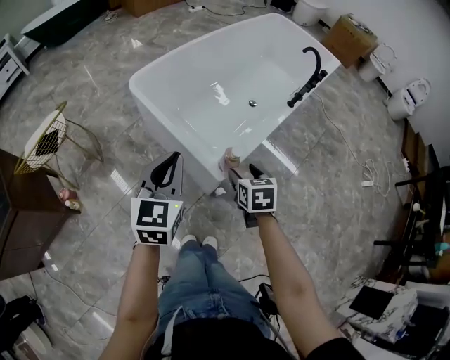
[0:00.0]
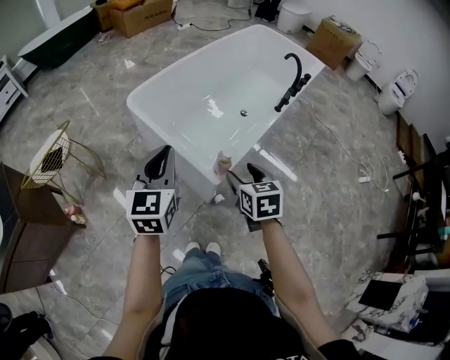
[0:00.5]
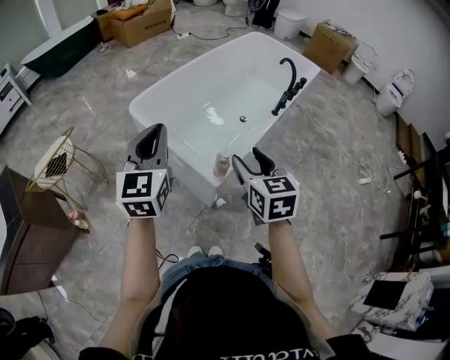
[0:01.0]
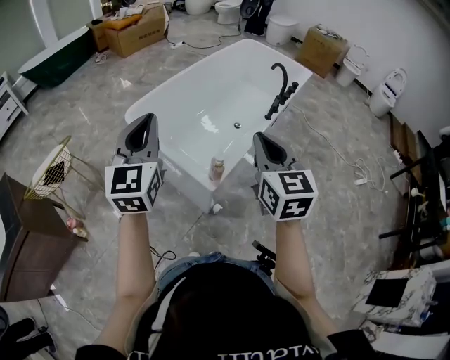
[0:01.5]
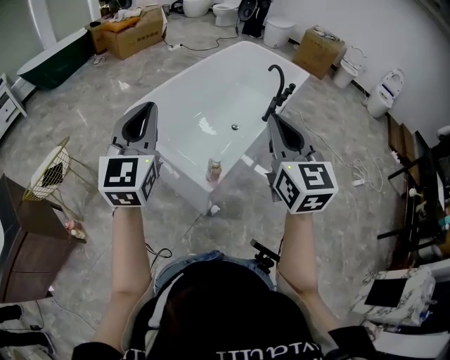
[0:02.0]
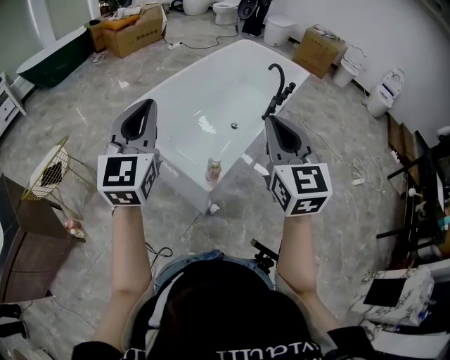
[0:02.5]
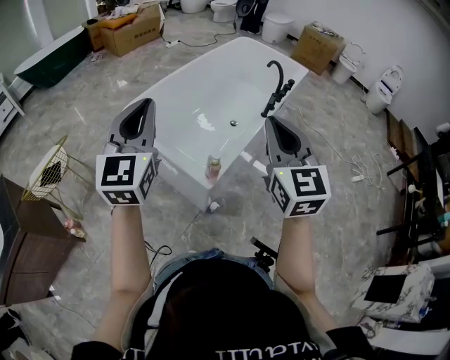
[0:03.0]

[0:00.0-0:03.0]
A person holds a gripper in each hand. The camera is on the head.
0:00.0 to 0:01.5: The left gripper goes roughly 20 cm upward. The right gripper moves upward, approximately 30 cm, tips its fingers upward by about 40 degrees, and closes its fingers.
0:01.5 to 0:03.0: The right gripper travels upward by about 5 cm.

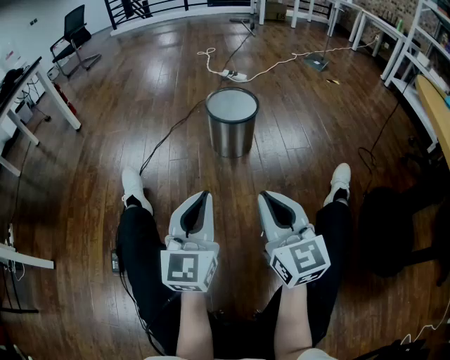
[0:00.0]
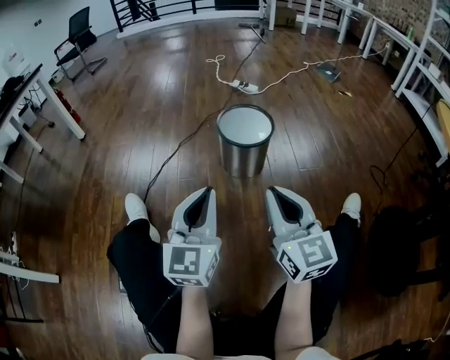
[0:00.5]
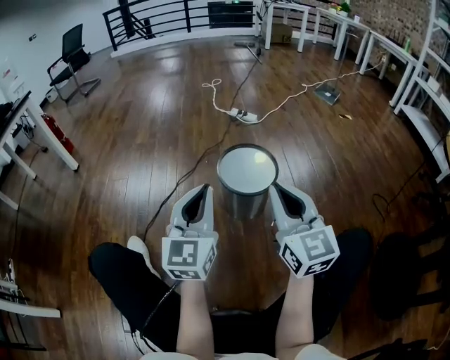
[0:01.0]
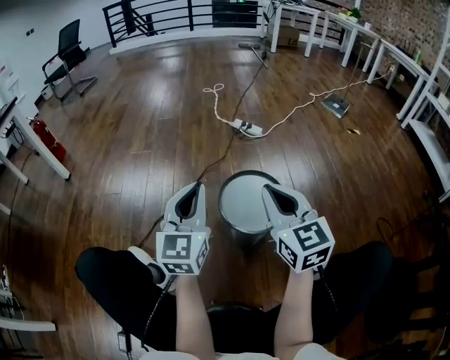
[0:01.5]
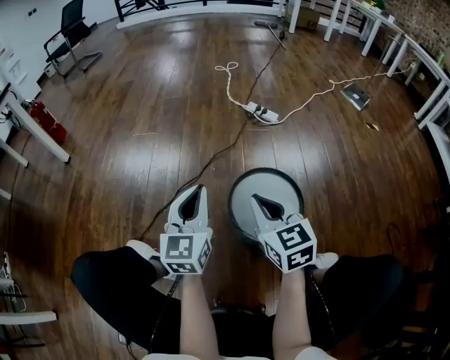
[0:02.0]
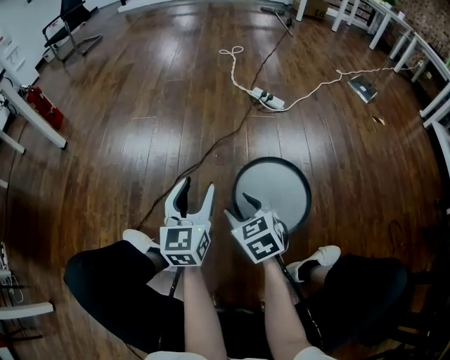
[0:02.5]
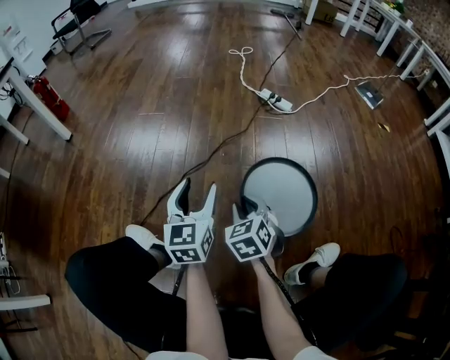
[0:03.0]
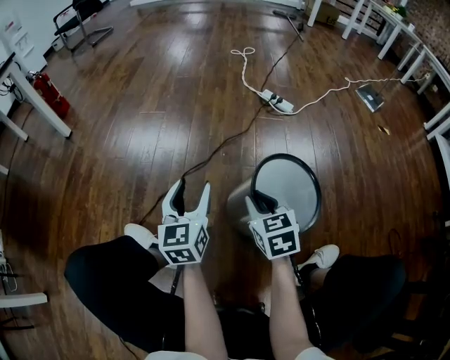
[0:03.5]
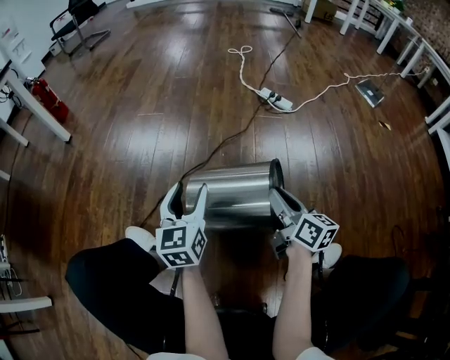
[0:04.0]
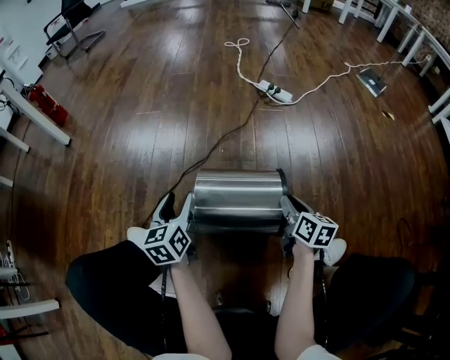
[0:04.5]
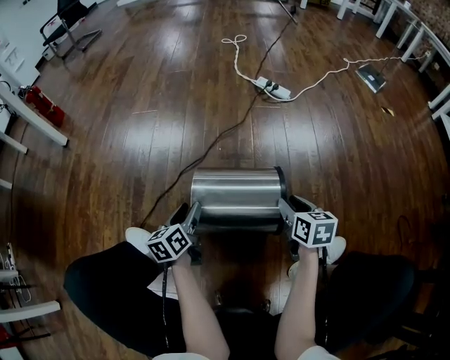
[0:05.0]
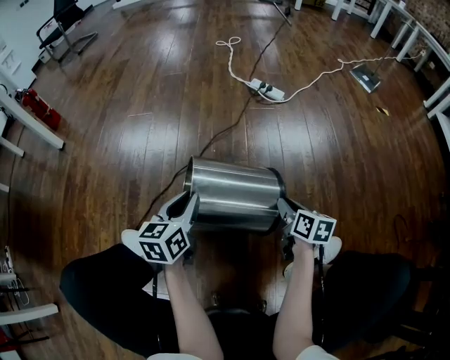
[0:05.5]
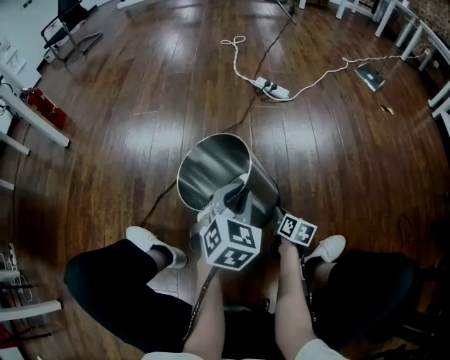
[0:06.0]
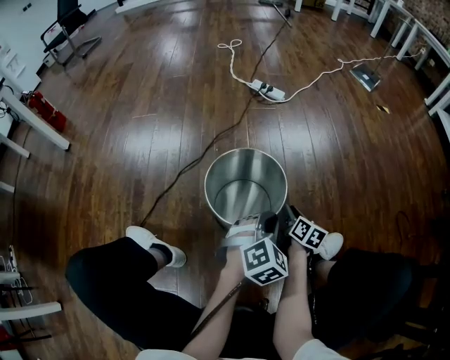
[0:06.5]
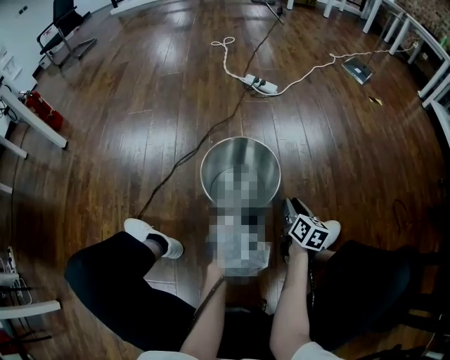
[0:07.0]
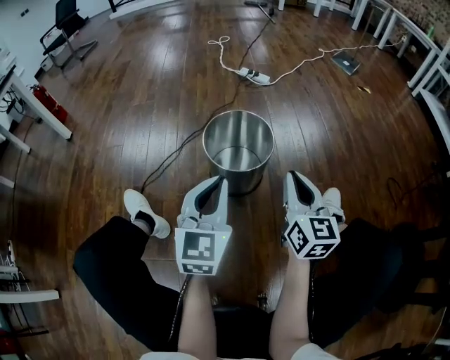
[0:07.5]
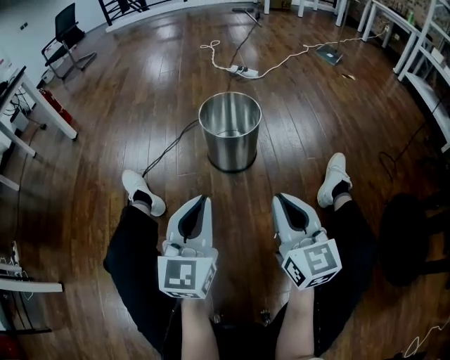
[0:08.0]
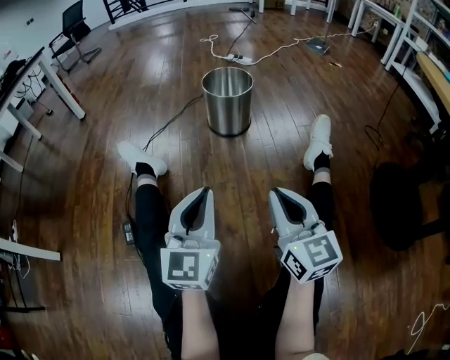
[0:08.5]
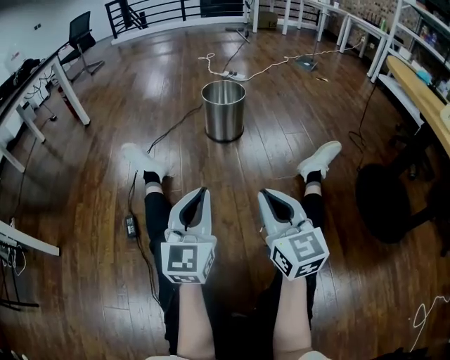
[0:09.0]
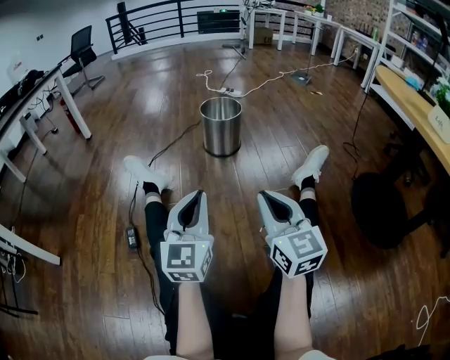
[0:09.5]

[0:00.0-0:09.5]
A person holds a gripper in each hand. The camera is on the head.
0:00.0 to 0:02.0: The pair of grippers is taken forward, about 50 cm. The right gripper changes its angle by some 20 degrees.
0:02.0 to 0:04.0: The left gripper moves downward and to the left, about 10 cm, and opens; the right gripper travels downward by some 10 cm, rotates approximately 40 degrees, and opens, then closes once more.
0:04.0 to 0:05.5: The right gripper moves downward and to the right, some 15 cm, and swivels roughly 30 degrees. Meanwhile the left gripper goes downward and returns, roughly 15 cm each way, changes its angle by roughly 20 degrees, and closes its fingers.
0:05.5 to 0:07.5: The right gripper moves upward and backward, roughly 25 cm, and tilts its fingers approximately 30 degrees upward. The left gripper shifts approximately 25 cm backward, upward and to the right, and turns by approximately 30 degrees.
0:07.5 to 0:09.5: The two grippers travel together, backward, approximately 50 cm.

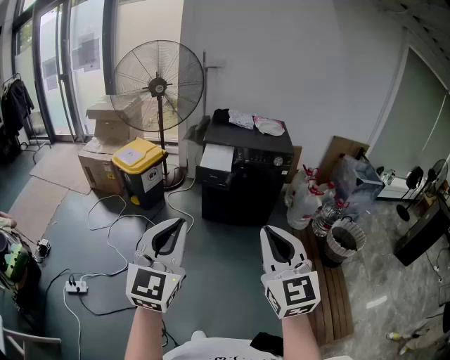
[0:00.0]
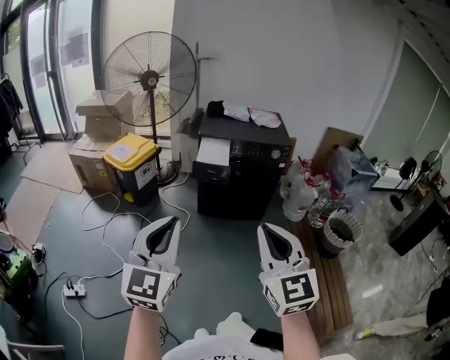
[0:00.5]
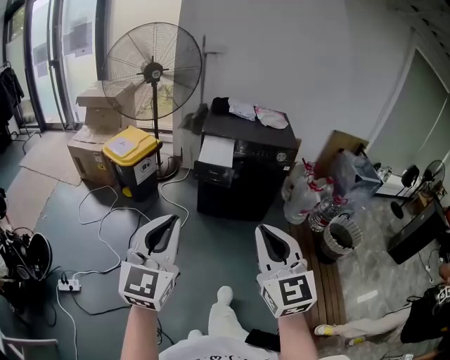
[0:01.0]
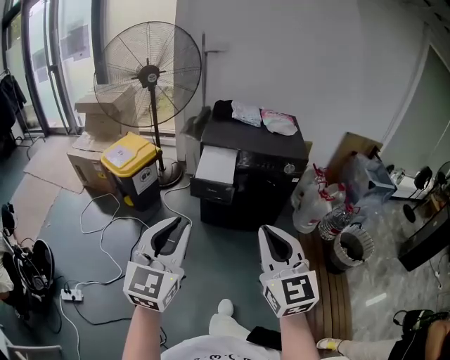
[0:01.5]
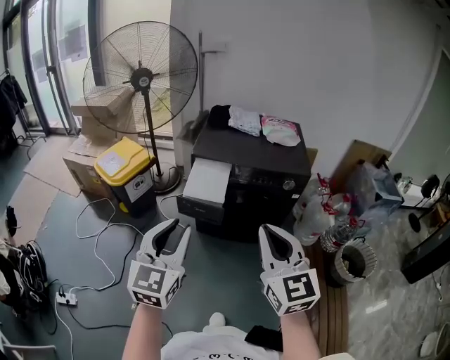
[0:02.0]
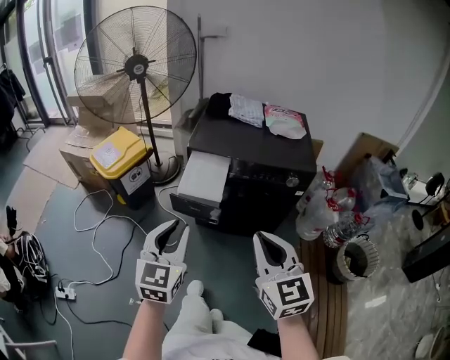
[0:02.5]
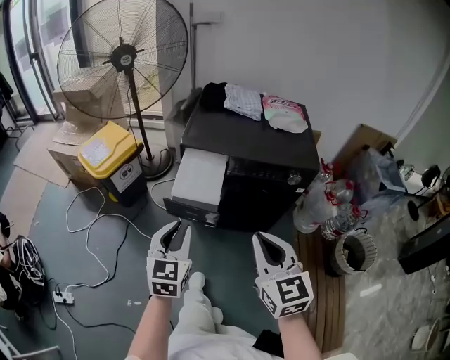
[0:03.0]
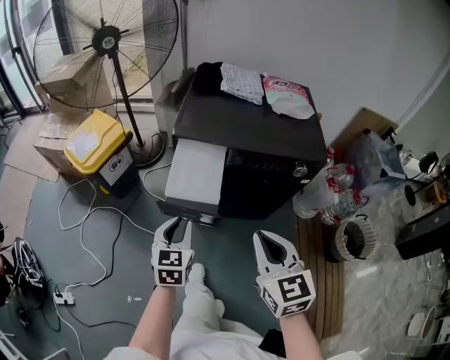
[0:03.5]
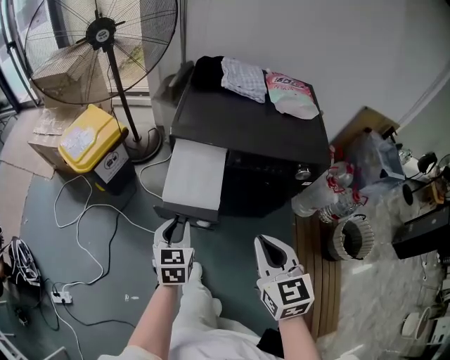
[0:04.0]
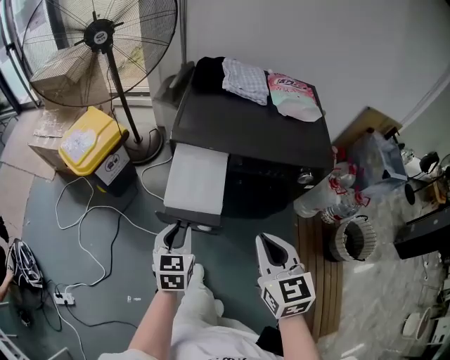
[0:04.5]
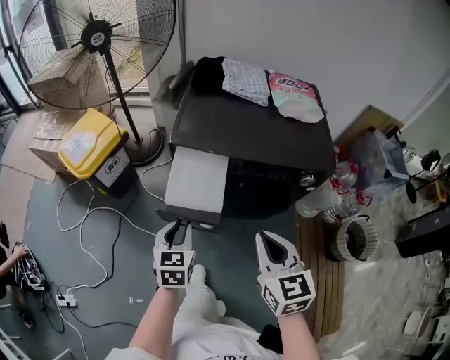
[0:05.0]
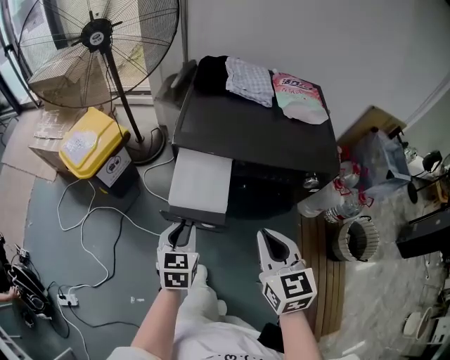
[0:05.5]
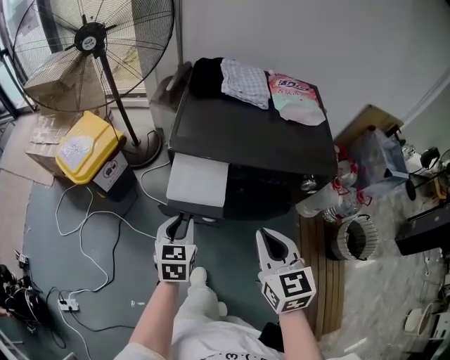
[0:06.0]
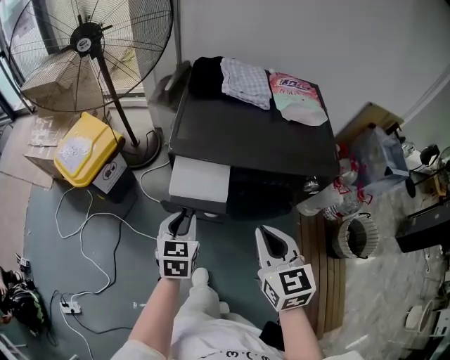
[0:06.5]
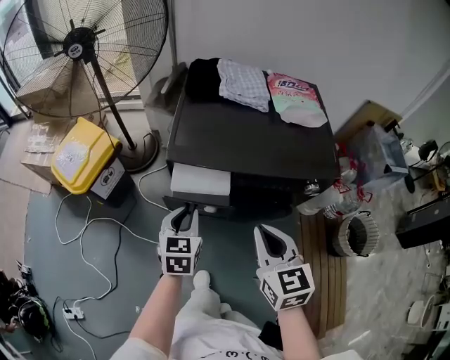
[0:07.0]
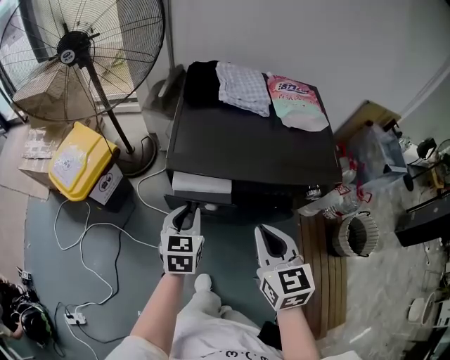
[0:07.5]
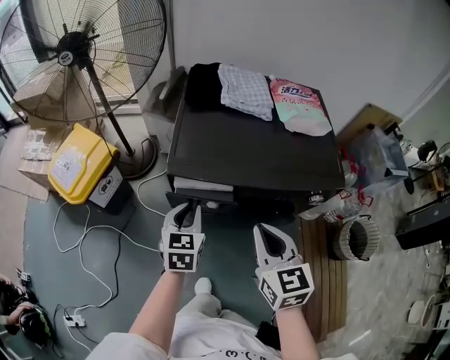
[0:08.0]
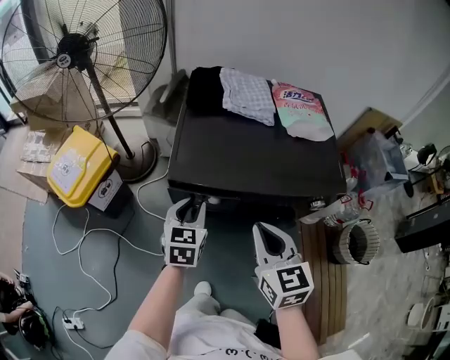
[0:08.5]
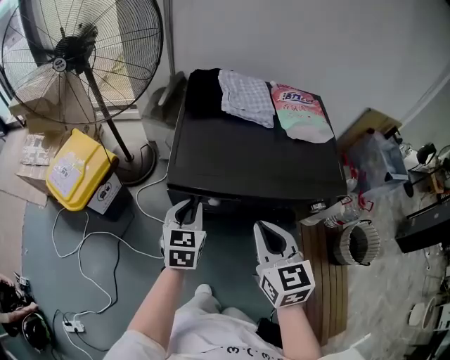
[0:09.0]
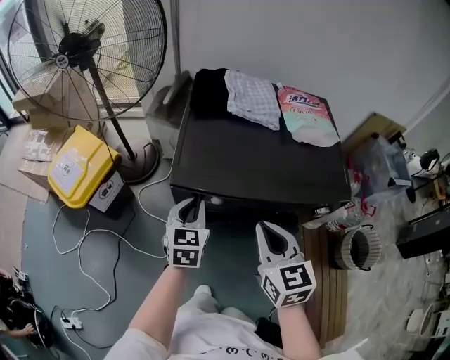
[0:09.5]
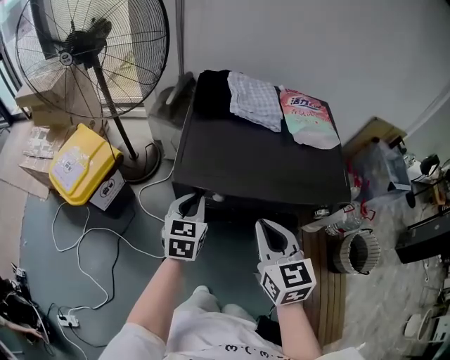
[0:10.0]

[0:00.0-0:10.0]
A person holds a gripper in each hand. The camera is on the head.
0:00.0 to 0:02.0: Both grippers move forward, approximately 35 cm.
0:02.0 to 0:04.0: Both grippers travel together downward and forward, approximately 30 cm. The right gripper rotates approximately 20 degrees. Meanwhile the left gripper changes its angle by roughly 30 degrees.
0:04.0 to 0:06.0: The two grippers go about 5 cm forward.
0:06.0 to 0:08.0: Both grippers travel together forward, roughly 10 cm.
0:08.0 to 0:10.0: The left gripper shifts some 5 cm forward.

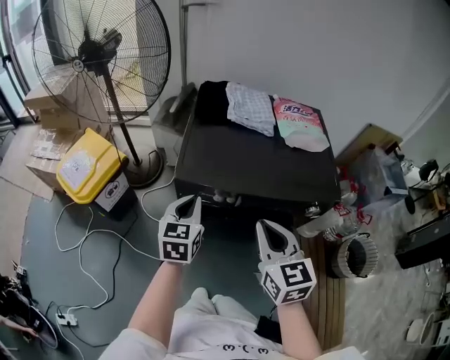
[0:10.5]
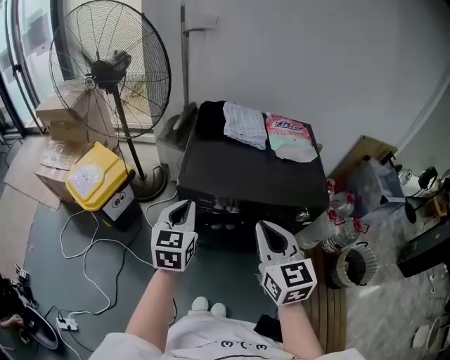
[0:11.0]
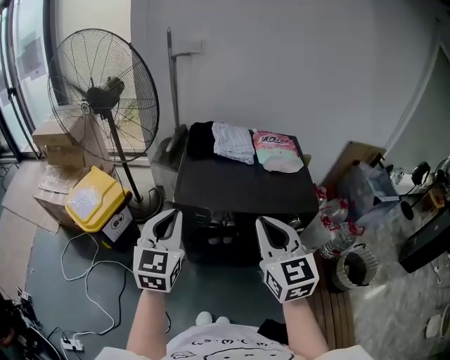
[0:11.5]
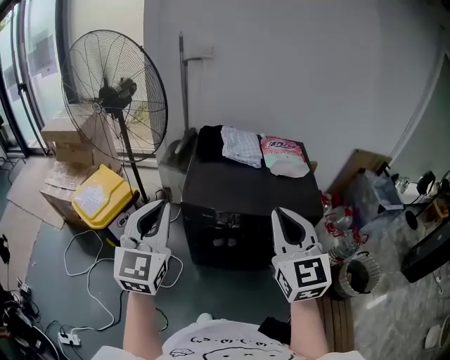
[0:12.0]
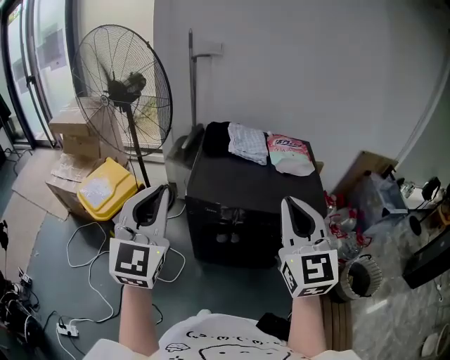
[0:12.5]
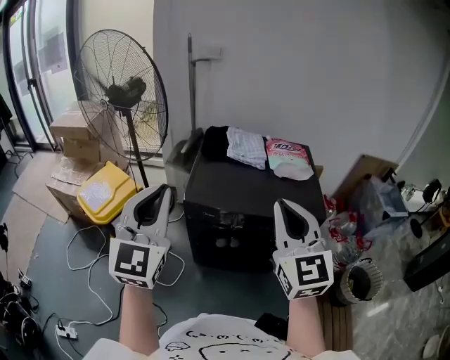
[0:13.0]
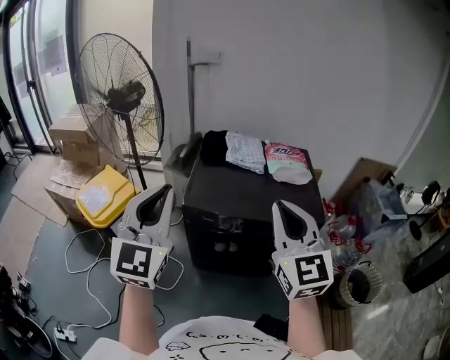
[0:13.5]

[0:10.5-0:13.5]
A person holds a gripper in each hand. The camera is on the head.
0:10.5 to 0:12.0: The right gripper is displaced upward by some 15 cm, and rotates approximately 20 degrees. The left gripper travels upward and backward by approximately 25 cm, and rotates roughly 30 degrees.
0:12.0 to 0:13.5: The left gripper travels upward by about 5 cm.
